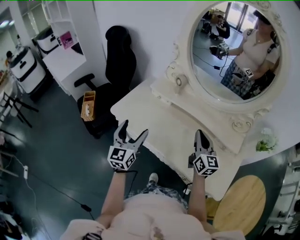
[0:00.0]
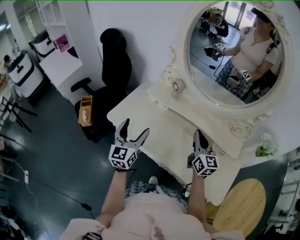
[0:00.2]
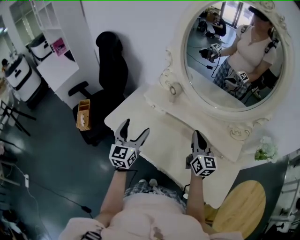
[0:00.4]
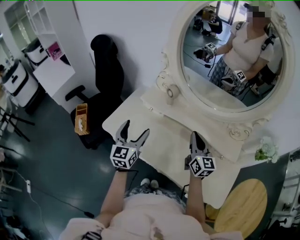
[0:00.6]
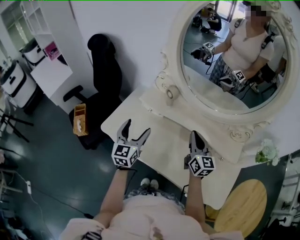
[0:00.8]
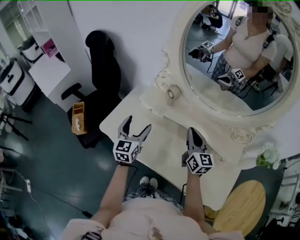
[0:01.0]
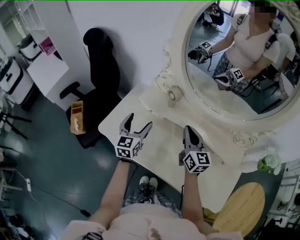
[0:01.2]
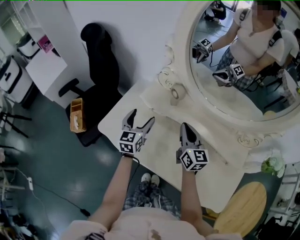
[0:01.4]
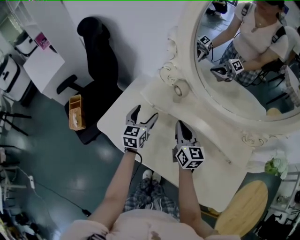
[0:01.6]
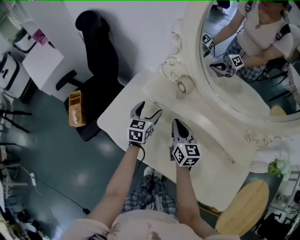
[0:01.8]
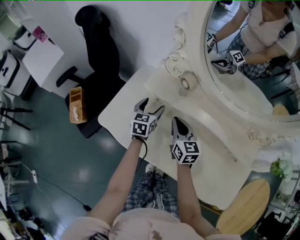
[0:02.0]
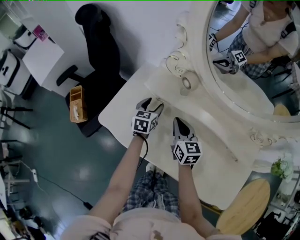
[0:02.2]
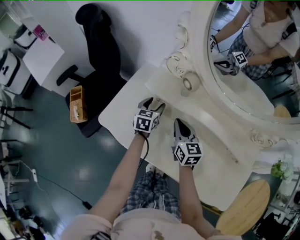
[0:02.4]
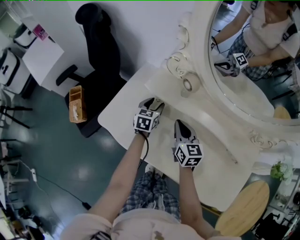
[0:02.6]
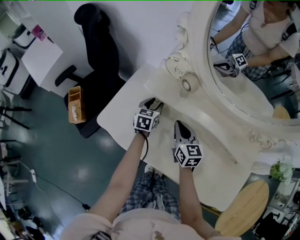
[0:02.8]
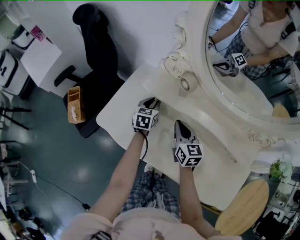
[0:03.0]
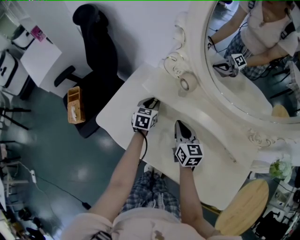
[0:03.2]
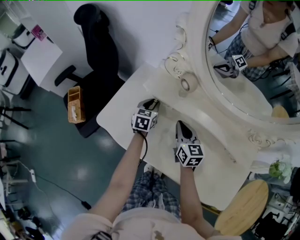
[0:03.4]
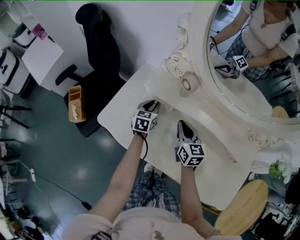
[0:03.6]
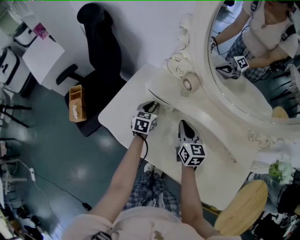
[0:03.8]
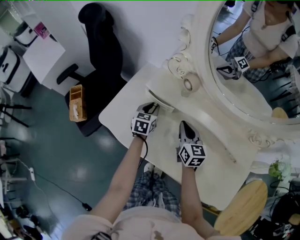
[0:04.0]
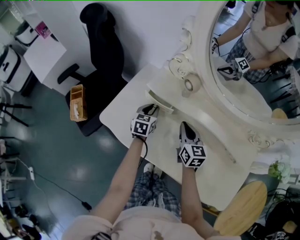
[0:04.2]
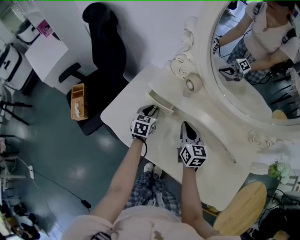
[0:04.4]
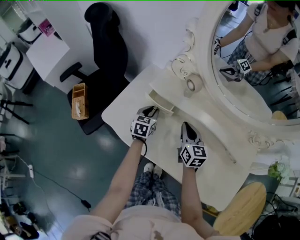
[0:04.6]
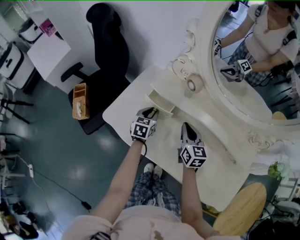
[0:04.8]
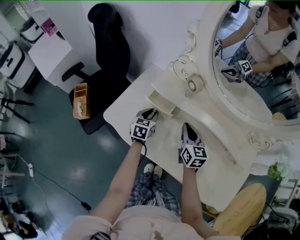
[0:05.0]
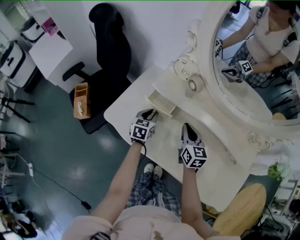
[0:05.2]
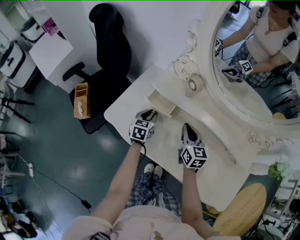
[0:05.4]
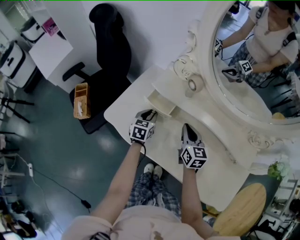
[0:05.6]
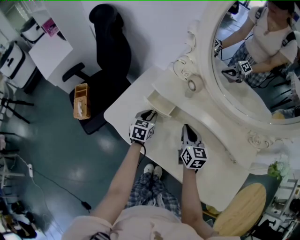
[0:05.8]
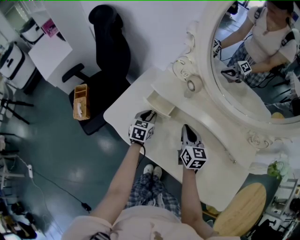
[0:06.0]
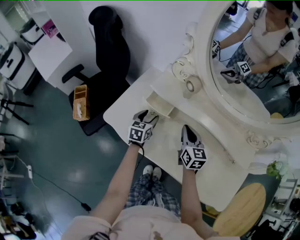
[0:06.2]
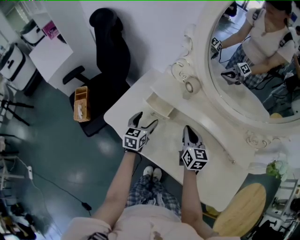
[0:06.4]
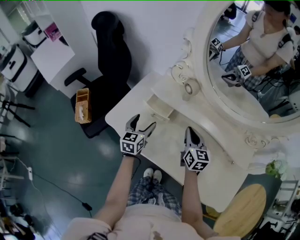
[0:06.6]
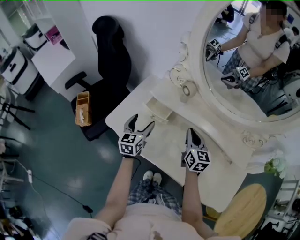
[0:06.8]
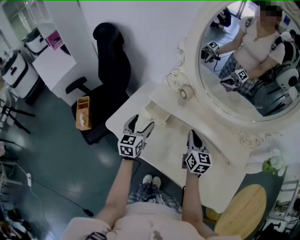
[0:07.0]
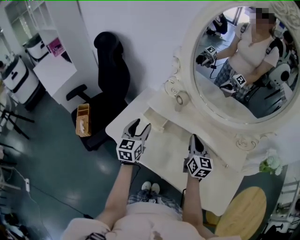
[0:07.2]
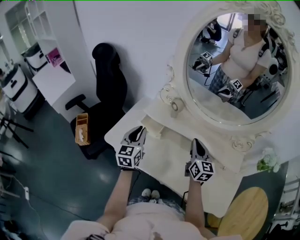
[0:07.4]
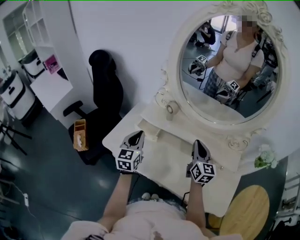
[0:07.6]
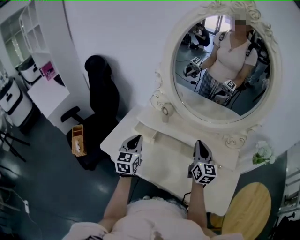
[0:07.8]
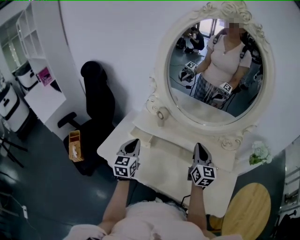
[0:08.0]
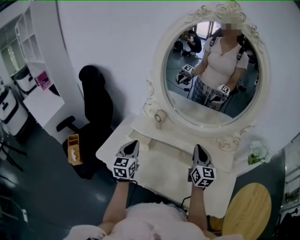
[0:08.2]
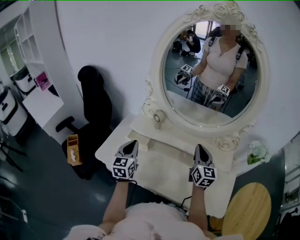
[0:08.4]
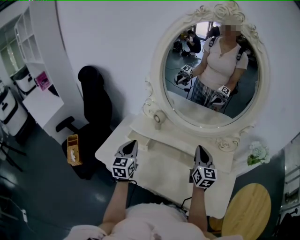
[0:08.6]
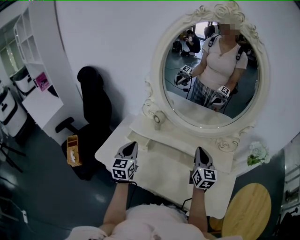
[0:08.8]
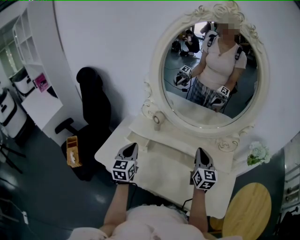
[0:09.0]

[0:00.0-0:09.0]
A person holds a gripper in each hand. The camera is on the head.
0:00.0 to 0:01.6: The left gripper is displaced forward and downward by roughly 30 cm. Meanwhile the right gripper shifts about 25 cm forward, to the left and downward.
0:01.6 to 0:03.0: The left gripper heads downward and forward, covering approximately 10 cm, and closes up. Meanwhile the right gripper shifts about 5 cm downward.
0:03.0 to 0:04.4: The left gripper changes place by approximately 5 cm.
0:04.4 to 0:06.0: There are only small adjustments of the grippers.
0:06.0 to 0:07.6: The left gripper moves upward, some 20 cm, rotates some 30 degrees, and opens, then closes again; the right gripper travels upward and to the right by some 20 cm, and changes its angle by approximately 20 degrees.
0:07.6 to 0:09.0: The right gripper heads to the right, covering roughly 5 cm.

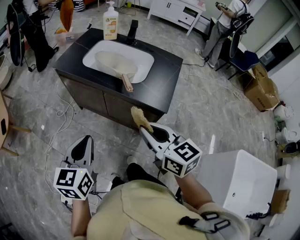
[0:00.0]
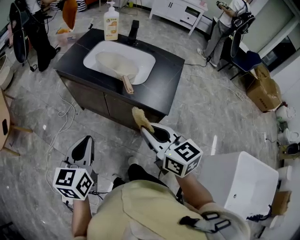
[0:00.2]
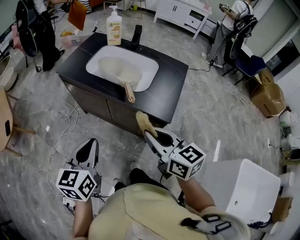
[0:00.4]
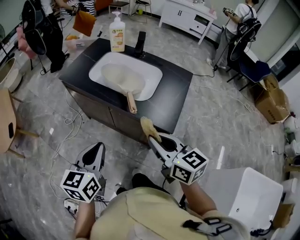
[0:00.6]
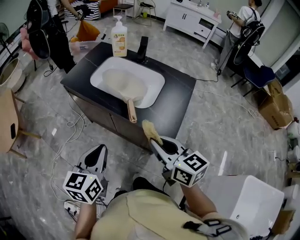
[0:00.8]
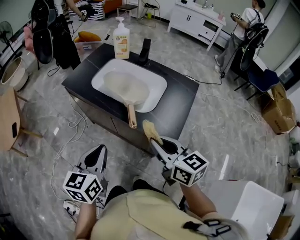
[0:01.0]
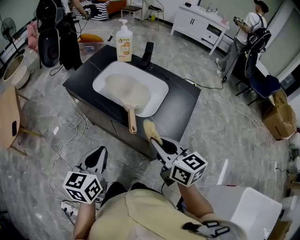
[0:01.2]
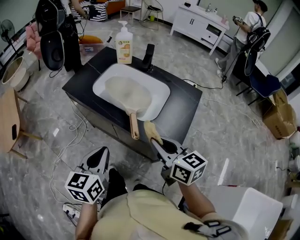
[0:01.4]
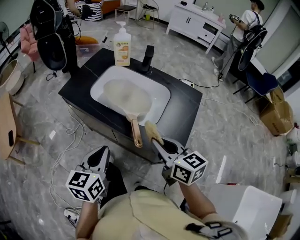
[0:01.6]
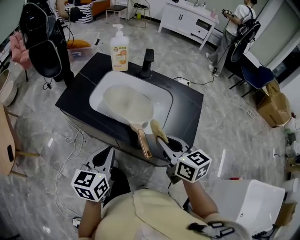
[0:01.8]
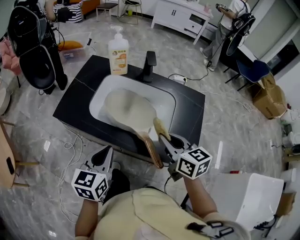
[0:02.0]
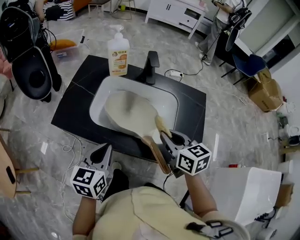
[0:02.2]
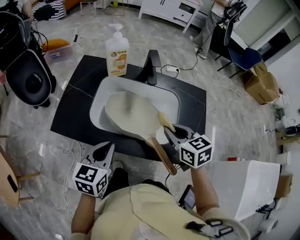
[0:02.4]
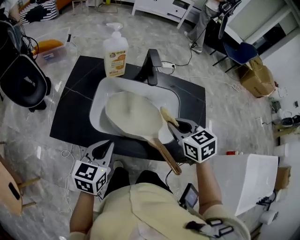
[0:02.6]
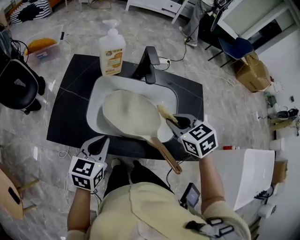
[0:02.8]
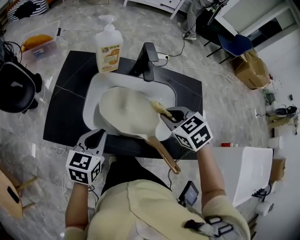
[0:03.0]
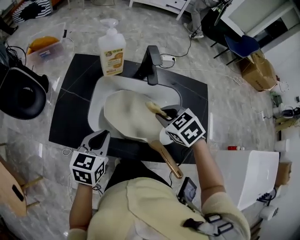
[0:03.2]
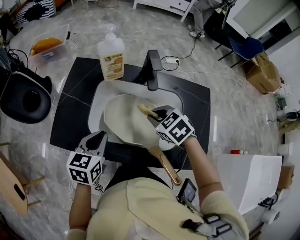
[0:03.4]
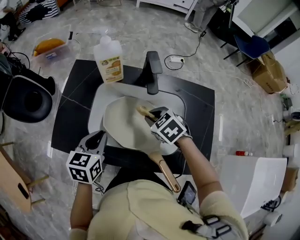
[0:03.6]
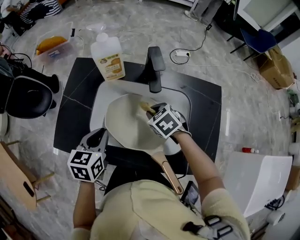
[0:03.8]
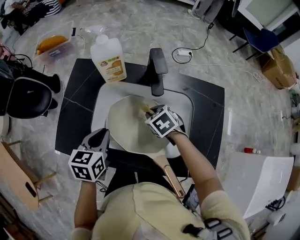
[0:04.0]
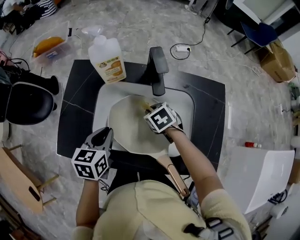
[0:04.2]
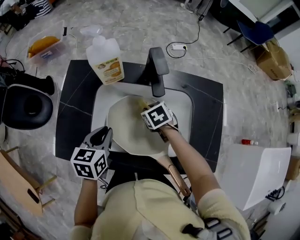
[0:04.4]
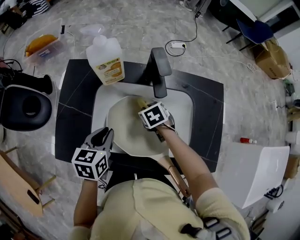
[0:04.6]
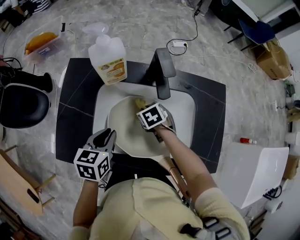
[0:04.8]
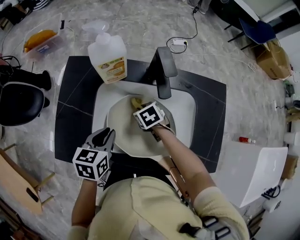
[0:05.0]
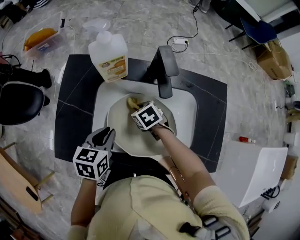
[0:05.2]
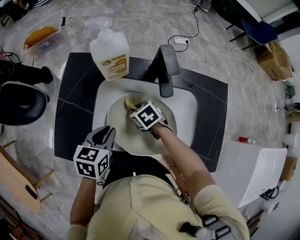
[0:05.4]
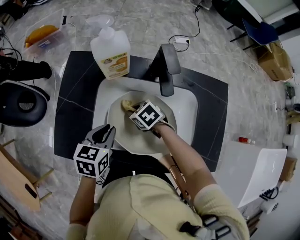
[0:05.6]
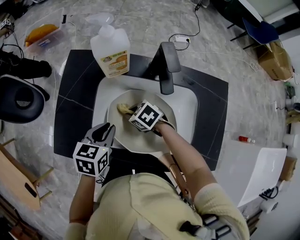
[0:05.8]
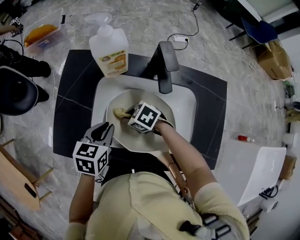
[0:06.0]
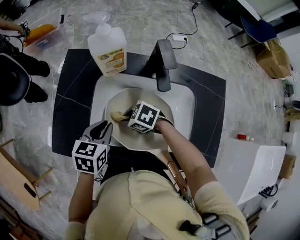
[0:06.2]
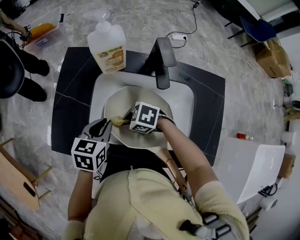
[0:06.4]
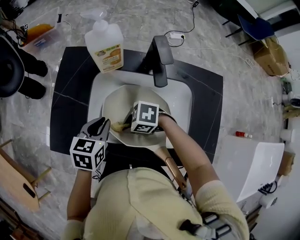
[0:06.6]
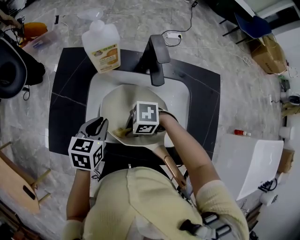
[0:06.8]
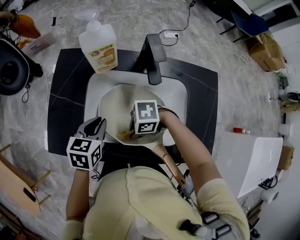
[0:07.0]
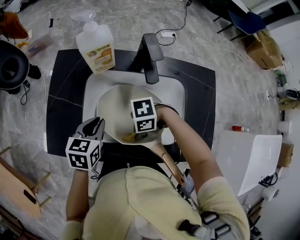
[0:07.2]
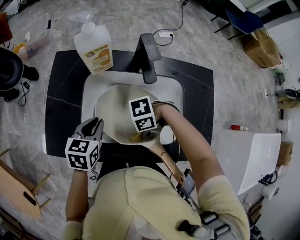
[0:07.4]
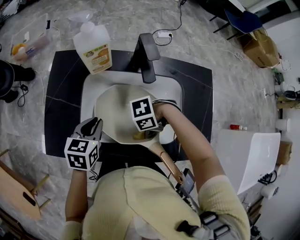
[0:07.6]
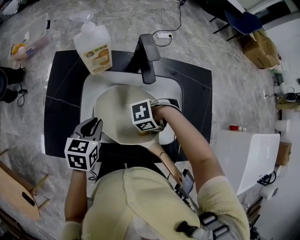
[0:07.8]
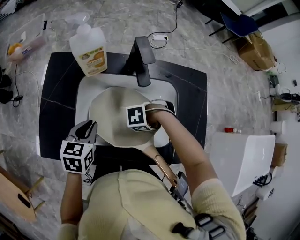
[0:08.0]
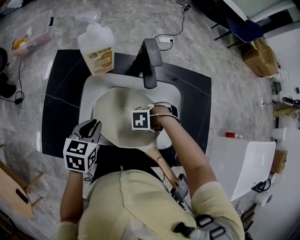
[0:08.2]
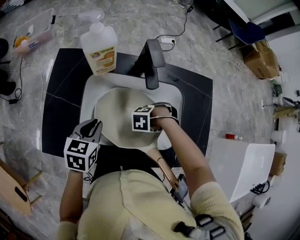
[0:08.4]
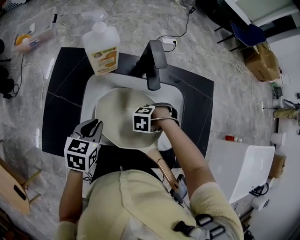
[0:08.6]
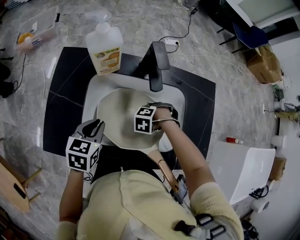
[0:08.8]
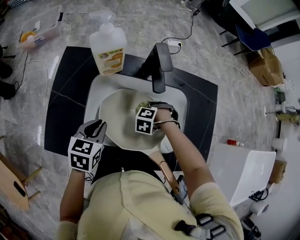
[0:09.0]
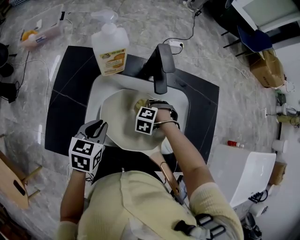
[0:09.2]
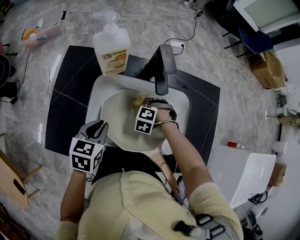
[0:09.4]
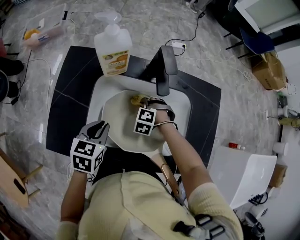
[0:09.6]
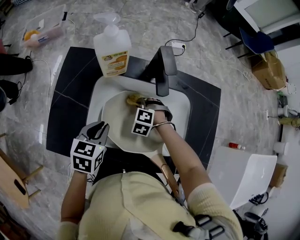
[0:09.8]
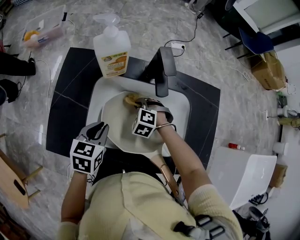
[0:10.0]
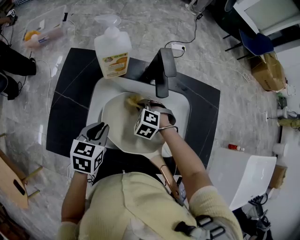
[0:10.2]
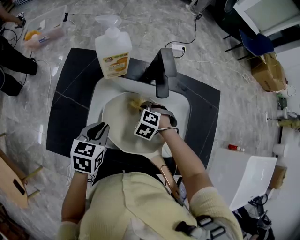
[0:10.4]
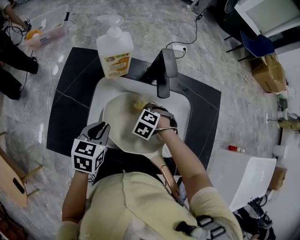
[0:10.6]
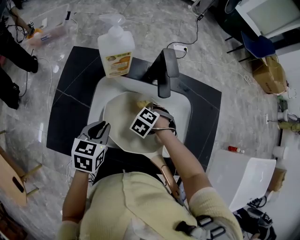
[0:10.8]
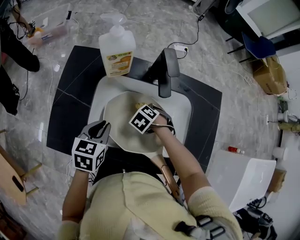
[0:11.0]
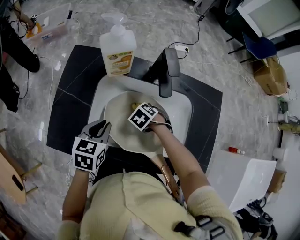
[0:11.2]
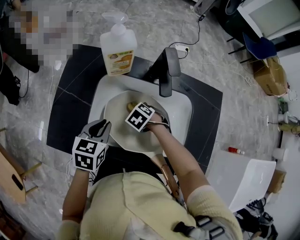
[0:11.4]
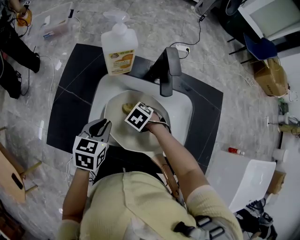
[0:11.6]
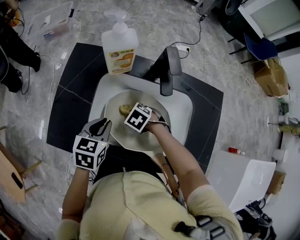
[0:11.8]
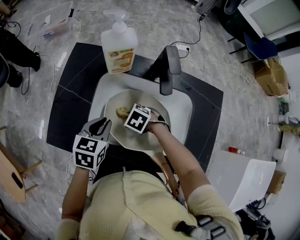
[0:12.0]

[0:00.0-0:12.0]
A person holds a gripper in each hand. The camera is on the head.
0:00.0 to 0:01.6: The left gripper goes approximately 20 cm forward and to the right. Meanwhile the right gripper shifts some 20 cm forward.
0:01.6 to 0:03.0: The right gripper moves some 25 cm, and tilts its fingers some 40 degrees downward. The left gripper moves some 30 cm, and rotates some 30 degrees.
0:03.0 to 0:04.4: The left gripper heads forward, covering approximately 10 cm. The right gripper goes roughly 20 cm downward and forward, and swivels some 20 degrees.
0:04.4 to 0:06.0: The right gripper moves some 15 cm, and rotates roughly 40 degrees.
0:06.0 to 0:07.6: The right gripper moves approximately 20 cm, and changes its angle by approximately 50 degrees.
0:07.6 to 0:09.0: The right gripper moves about 20 cm, and angles its fingers downward, by approximately 40 degrees.
0:09.0 to 0:10.4: The right gripper changes place by roughly 5 cm, and swivels roughly 20 degrees.
0:10.4 to 0:12.0: The right gripper ends up about 10 cm from where it was, and changes its angle by about 30 degrees.

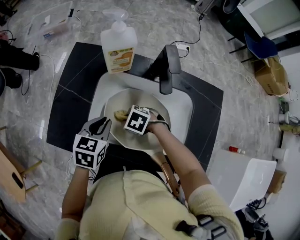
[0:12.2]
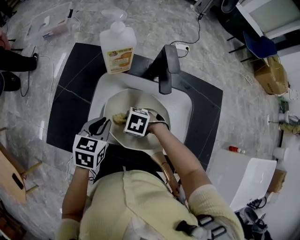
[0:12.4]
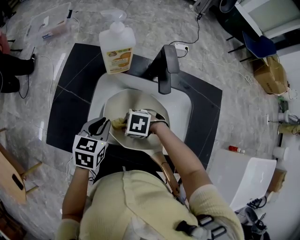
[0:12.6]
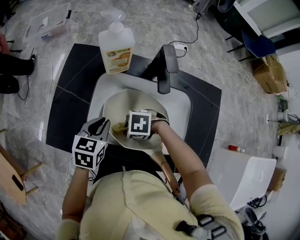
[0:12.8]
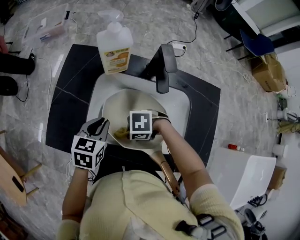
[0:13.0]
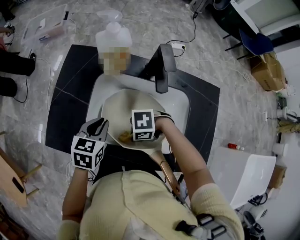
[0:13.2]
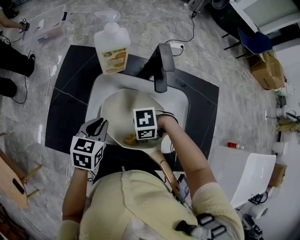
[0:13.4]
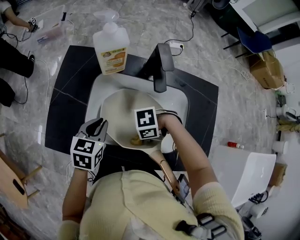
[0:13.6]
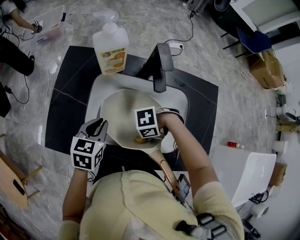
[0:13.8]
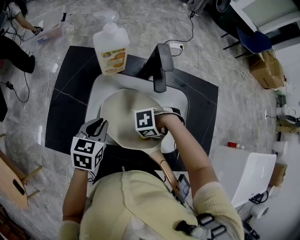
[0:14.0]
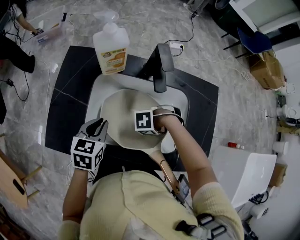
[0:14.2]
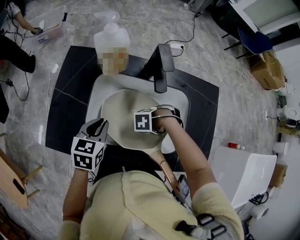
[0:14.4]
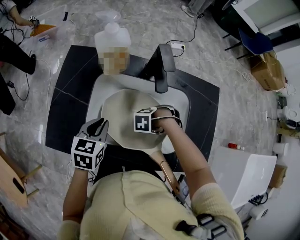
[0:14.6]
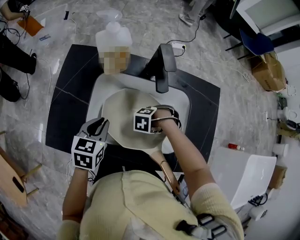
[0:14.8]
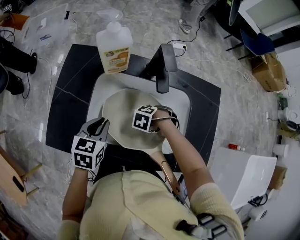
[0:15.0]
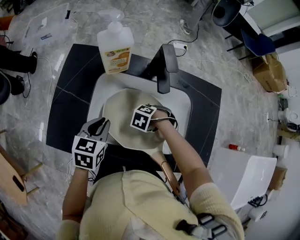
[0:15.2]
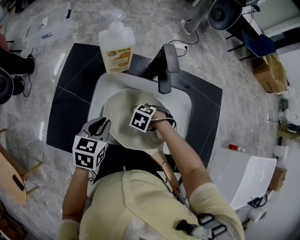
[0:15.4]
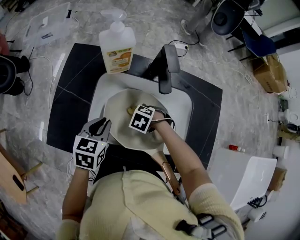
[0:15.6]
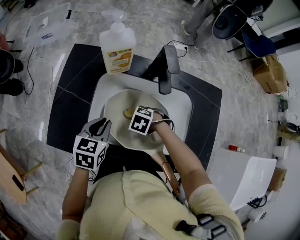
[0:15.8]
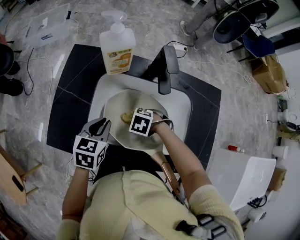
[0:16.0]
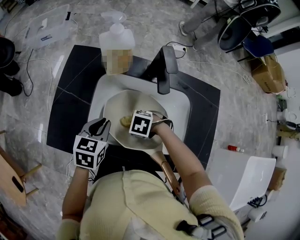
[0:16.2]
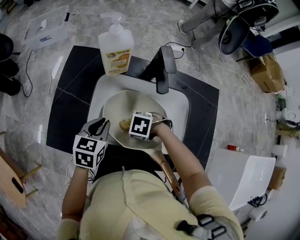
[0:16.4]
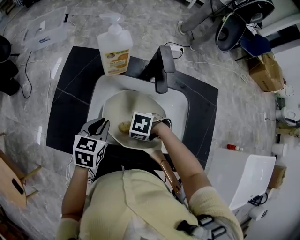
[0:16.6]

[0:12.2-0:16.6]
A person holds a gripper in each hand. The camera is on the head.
0:12.2 to 0:13.6: The right gripper shifts by about 15 cm, and changes its angle by roughly 40 degrees.
0:13.6 to 0:15.2: The right gripper ends up roughly 15 cm from where it was, and tilts its fingers approximately 40 degrees downward.
0:15.2 to 0:16.6: The right gripper shifts by some 10 cm, and swivels some 30 degrees.
